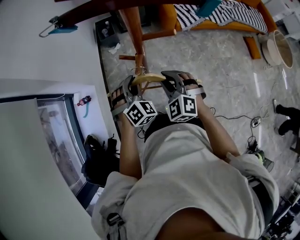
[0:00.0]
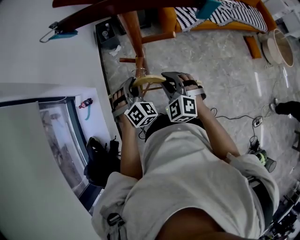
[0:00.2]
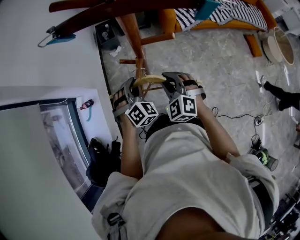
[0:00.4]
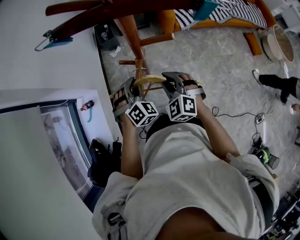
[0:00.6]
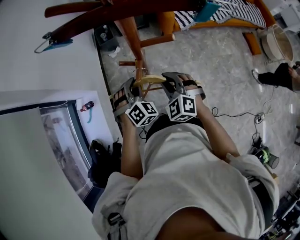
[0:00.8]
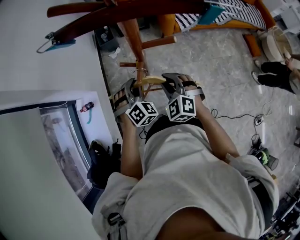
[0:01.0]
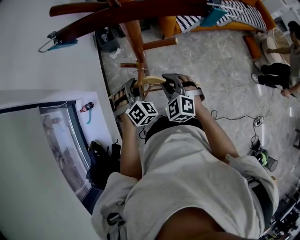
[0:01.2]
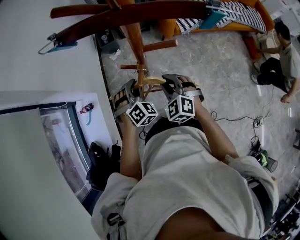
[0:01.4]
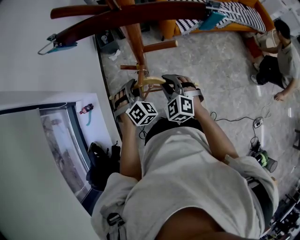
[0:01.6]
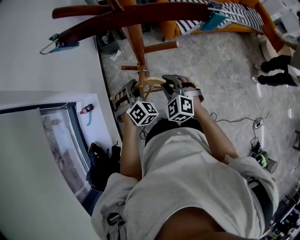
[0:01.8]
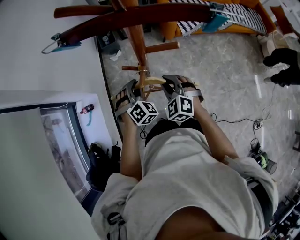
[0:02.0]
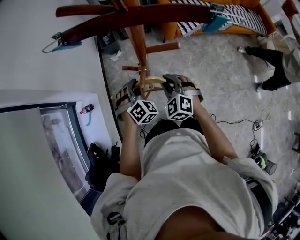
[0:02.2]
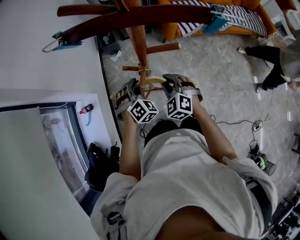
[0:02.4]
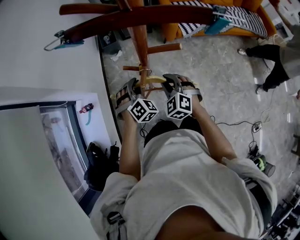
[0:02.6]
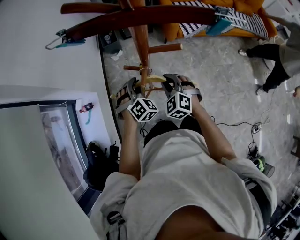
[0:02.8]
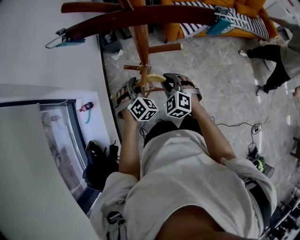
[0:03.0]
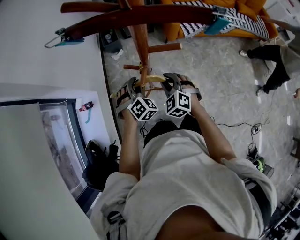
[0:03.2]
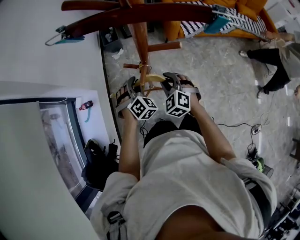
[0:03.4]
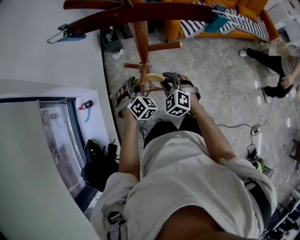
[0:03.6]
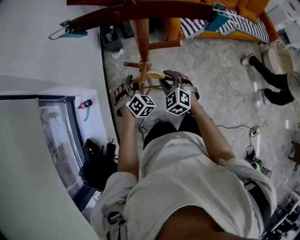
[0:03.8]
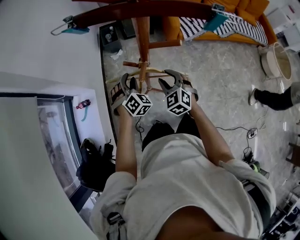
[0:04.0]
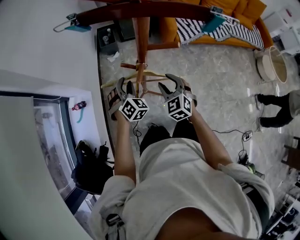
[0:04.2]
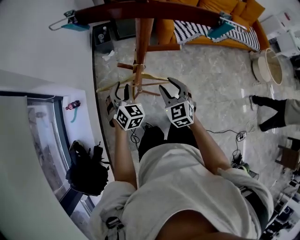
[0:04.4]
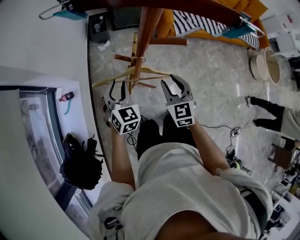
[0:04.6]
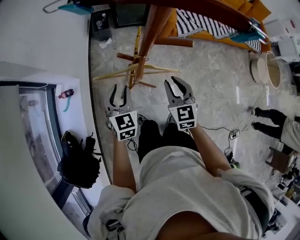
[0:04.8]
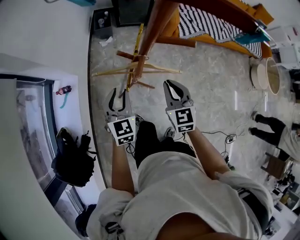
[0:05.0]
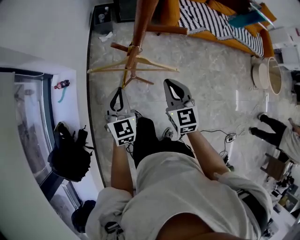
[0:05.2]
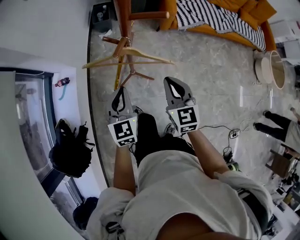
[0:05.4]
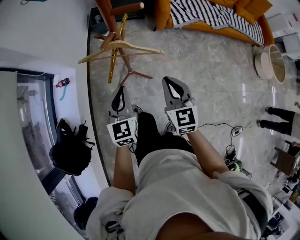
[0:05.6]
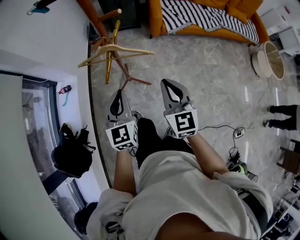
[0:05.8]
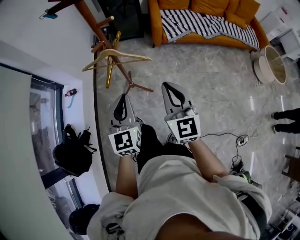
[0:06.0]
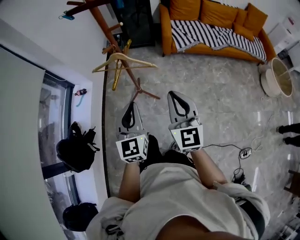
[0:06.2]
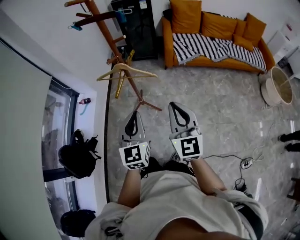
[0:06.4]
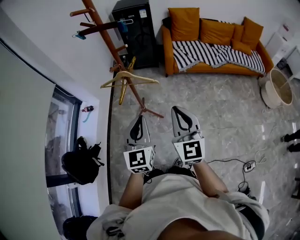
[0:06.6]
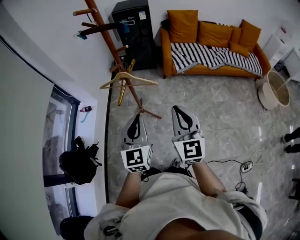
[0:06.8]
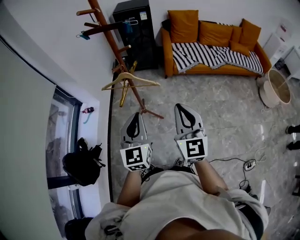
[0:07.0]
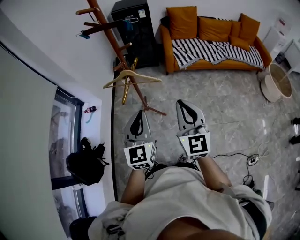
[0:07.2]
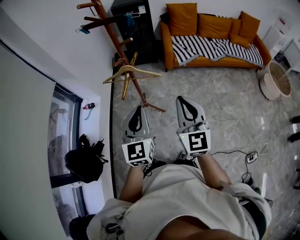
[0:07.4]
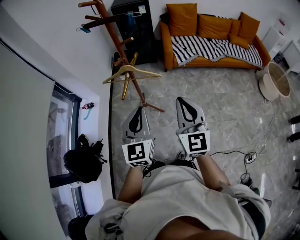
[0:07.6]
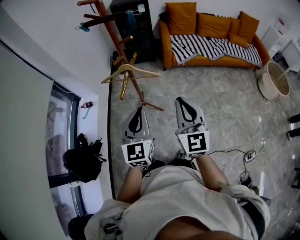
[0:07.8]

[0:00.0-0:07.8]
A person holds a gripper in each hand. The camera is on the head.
0.0 to 1.6 s: The grippers stay close to where they were, moving slightly.
1.6 to 3.2 s: There are only small adjustments of the grippers.
3.2 to 4.6 s: The left gripper ends up about 5 cm from where it was, and swivels some 30 degrees; the right gripper changes place by some 5 cm, and changes its angle by some 30 degrees.
4.6 to 6.2 s: The right gripper is displaced backward, upward and to the right by roughly 35 cm, rotates approximately 20 degrees, and closes its fingers. Meanwhile the left gripper goes about 40 cm backward, to the right and upward, rotates approximately 30 degrees, and closes up.
6.2 to 7.8 s: Both grippers move upward, roughly 5 cm.

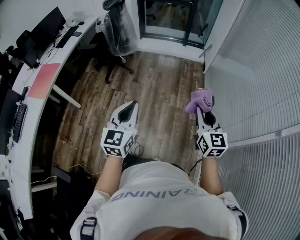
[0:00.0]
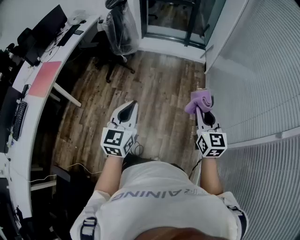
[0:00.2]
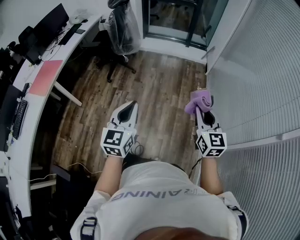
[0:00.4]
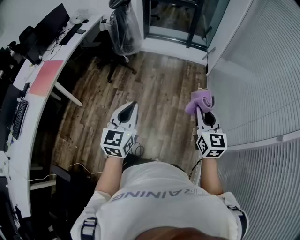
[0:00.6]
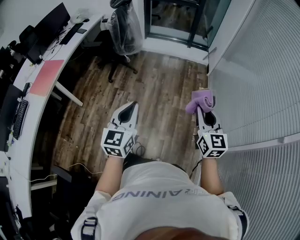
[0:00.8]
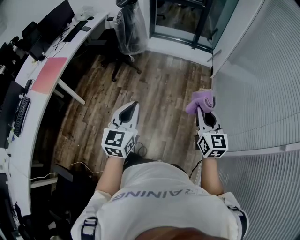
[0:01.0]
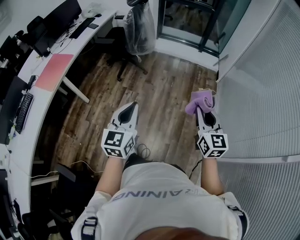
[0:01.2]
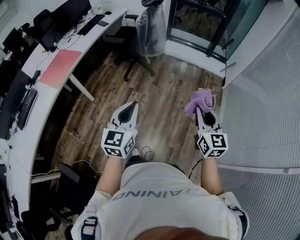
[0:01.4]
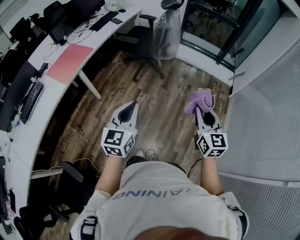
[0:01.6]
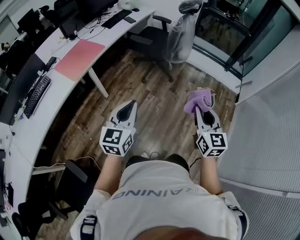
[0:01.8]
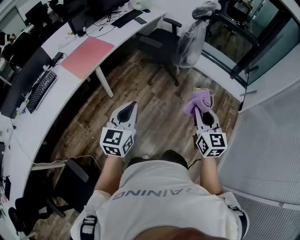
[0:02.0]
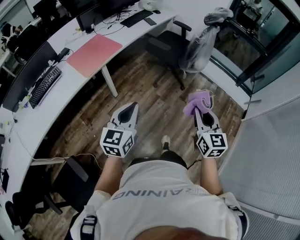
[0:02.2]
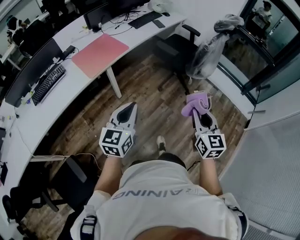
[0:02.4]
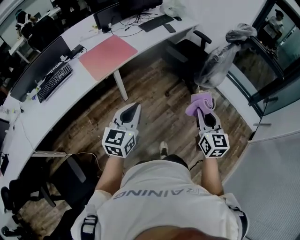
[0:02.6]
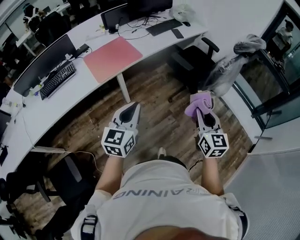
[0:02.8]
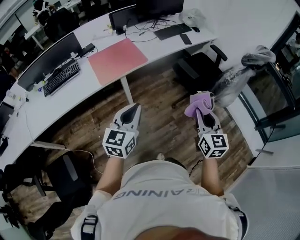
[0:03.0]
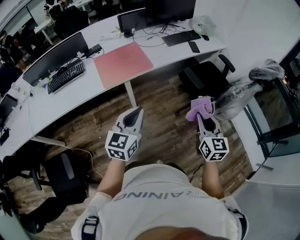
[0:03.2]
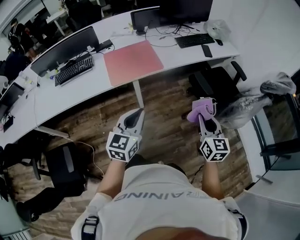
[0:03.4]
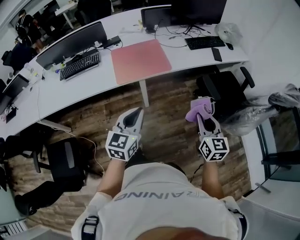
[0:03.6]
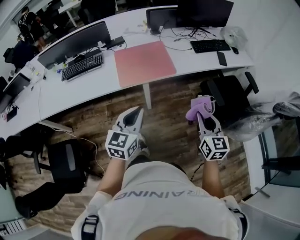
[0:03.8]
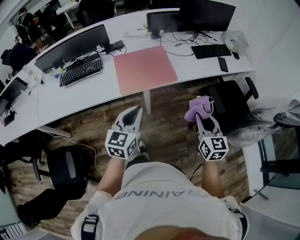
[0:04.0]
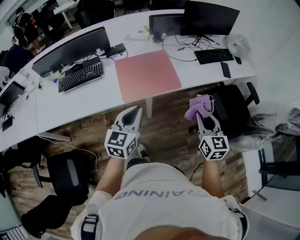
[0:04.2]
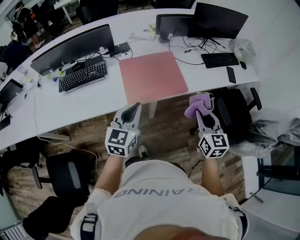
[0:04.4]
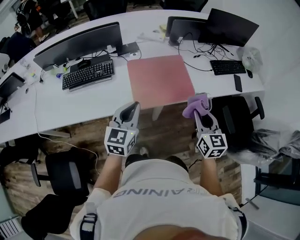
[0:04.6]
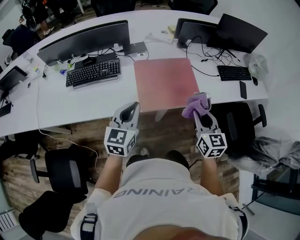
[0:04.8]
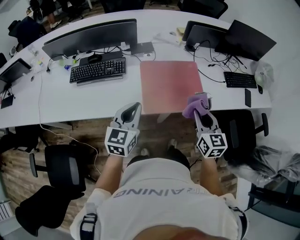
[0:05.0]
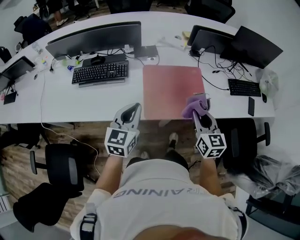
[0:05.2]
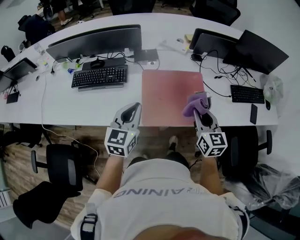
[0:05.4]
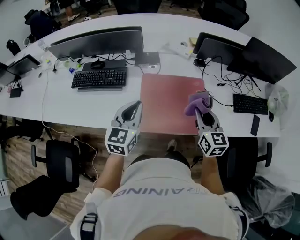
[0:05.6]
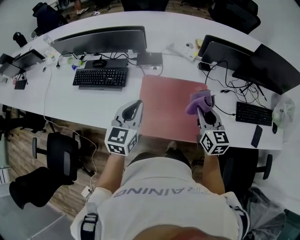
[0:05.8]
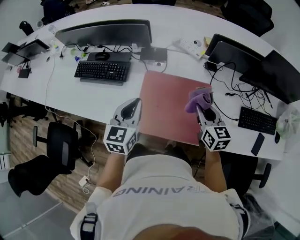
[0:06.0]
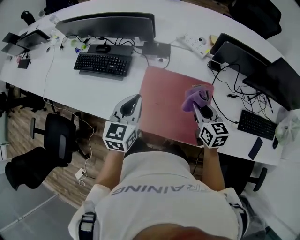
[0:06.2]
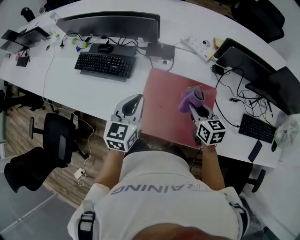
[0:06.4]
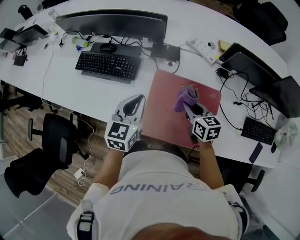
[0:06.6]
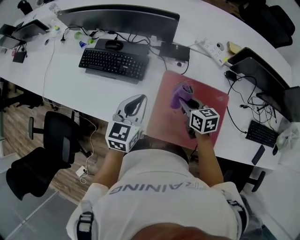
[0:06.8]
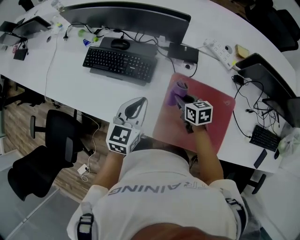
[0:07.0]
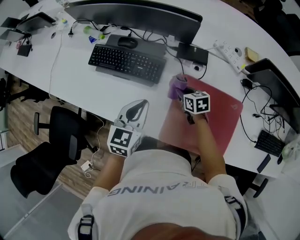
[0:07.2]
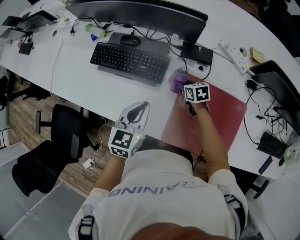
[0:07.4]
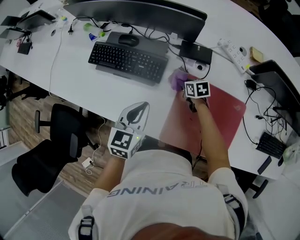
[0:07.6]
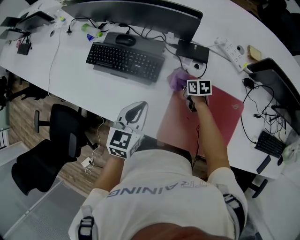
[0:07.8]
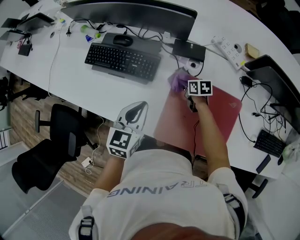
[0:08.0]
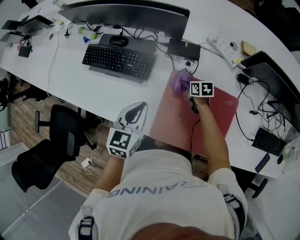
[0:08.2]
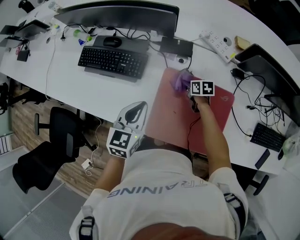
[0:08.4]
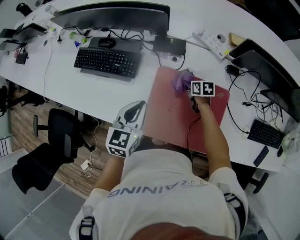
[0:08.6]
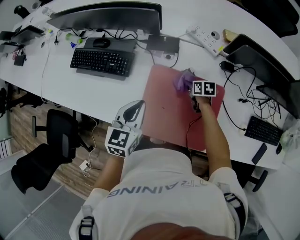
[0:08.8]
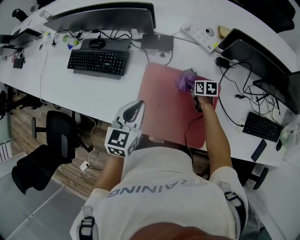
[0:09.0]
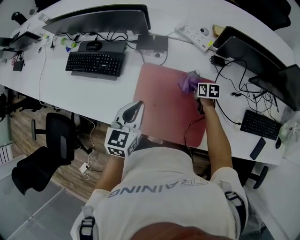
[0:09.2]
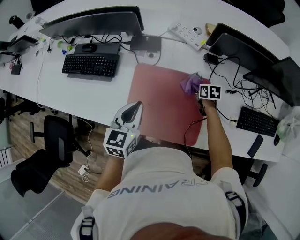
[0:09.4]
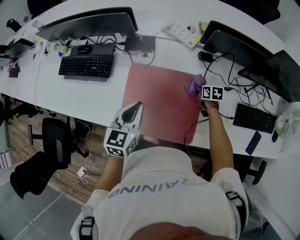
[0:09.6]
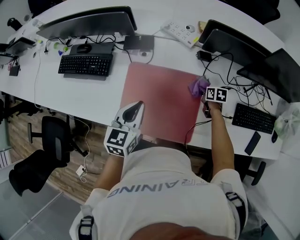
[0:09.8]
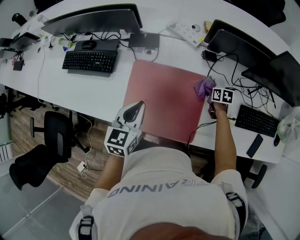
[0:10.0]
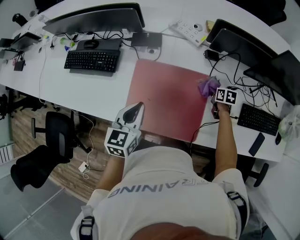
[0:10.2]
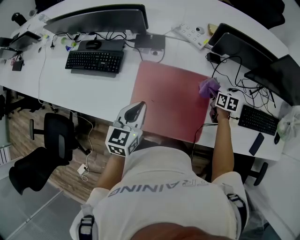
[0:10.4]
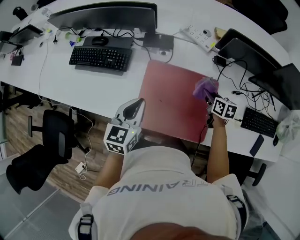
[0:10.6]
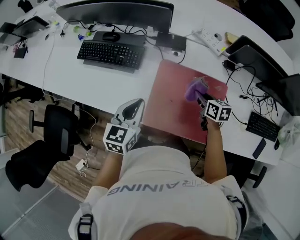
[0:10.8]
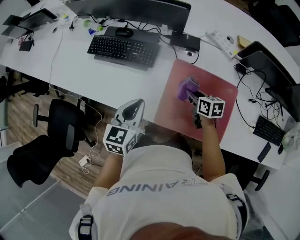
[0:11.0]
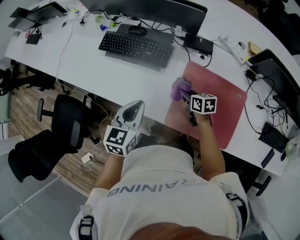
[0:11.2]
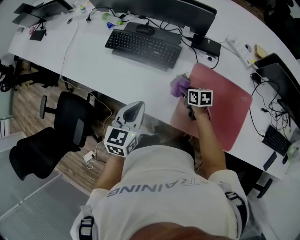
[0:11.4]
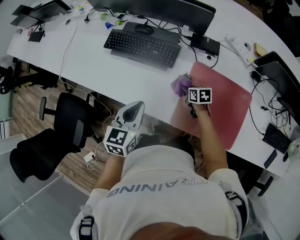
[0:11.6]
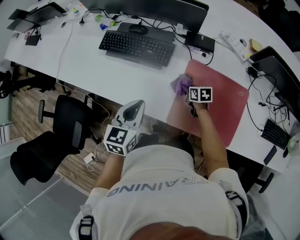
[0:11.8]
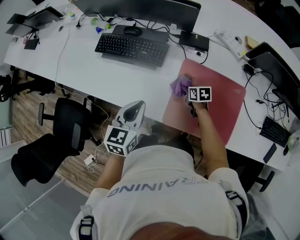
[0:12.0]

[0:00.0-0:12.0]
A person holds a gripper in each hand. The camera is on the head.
0.0 to 1.6 s: The left gripper heads to the left, covering some 30 cm. The right gripper heads to the left and forward, covering approximately 30 cm.
1.6 to 3.0 s: The right gripper shifts by roughly 40 cm, and turns by approximately 30 degrees; the left gripper changes place by approximately 30 cm, and changes its angle by roughly 30 degrees.
3.0 to 4.4 s: Both grippers move forward and to the left, approximately 35 cm.
4.4 to 6.0 s: The right gripper moves approximately 40 cm, and swivels some 30 degrees, while the left gripper ends up some 25 cm from where it was, and rotates about 30 degrees.
6.0 to 7.6 s: The right gripper travels forward, downward and to the left by some 40 cm, and swivels approximately 40 degrees. Meanwhile the left gripper goes roughly 20 cm to the left, forward and downward.
7.6 to 9.0 s: The grippers both shift to the right and backward by some 20 cm.
9.0 to 10.4 s: The right gripper moves to the right and backward, about 15 cm.
10.4 to 12.0 s: The right gripper travels to the left by some 35 cm, and changes its angle by approximately 20 degrees. Meanwhile the left gripper moves to the left, roughly 20 cm.

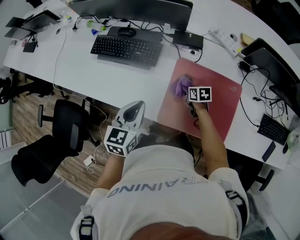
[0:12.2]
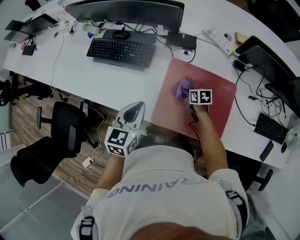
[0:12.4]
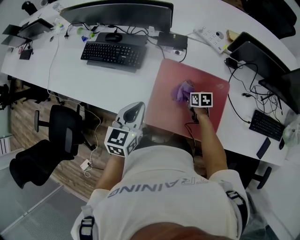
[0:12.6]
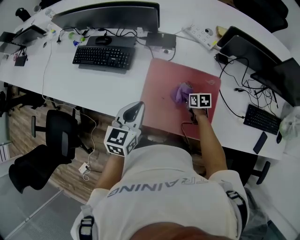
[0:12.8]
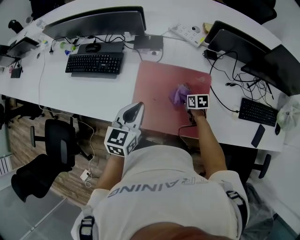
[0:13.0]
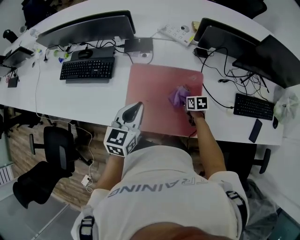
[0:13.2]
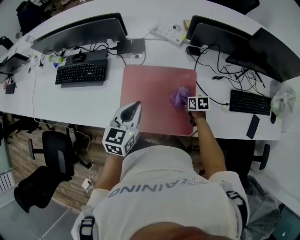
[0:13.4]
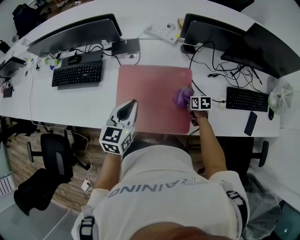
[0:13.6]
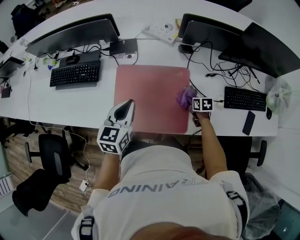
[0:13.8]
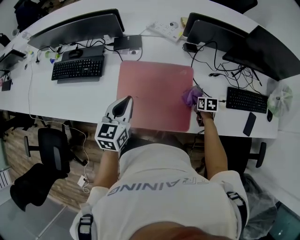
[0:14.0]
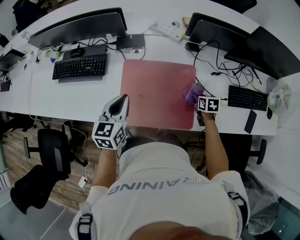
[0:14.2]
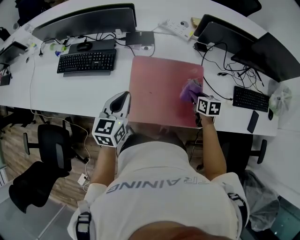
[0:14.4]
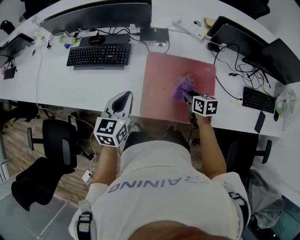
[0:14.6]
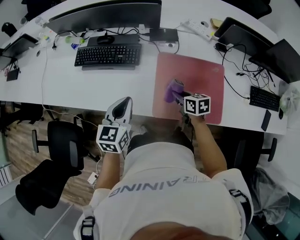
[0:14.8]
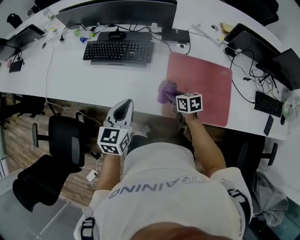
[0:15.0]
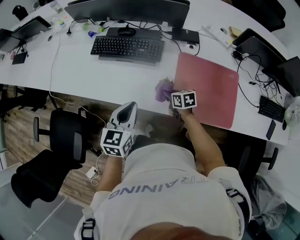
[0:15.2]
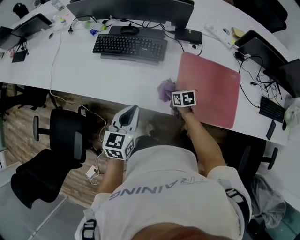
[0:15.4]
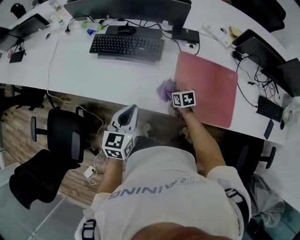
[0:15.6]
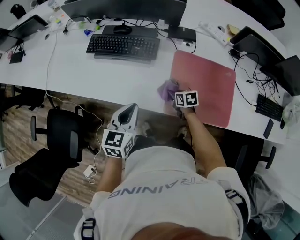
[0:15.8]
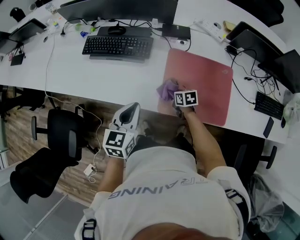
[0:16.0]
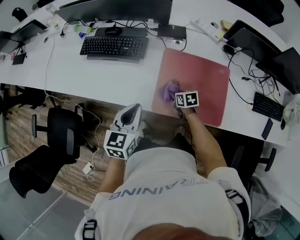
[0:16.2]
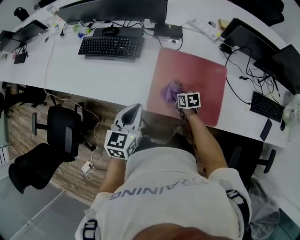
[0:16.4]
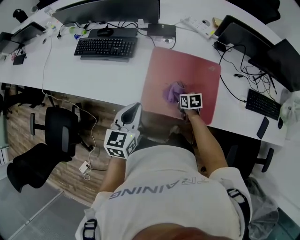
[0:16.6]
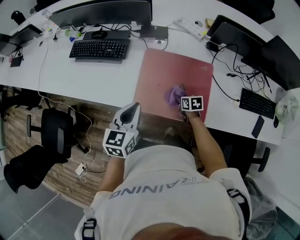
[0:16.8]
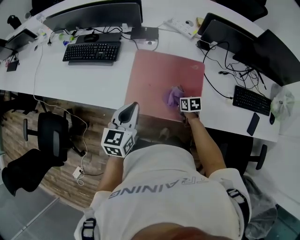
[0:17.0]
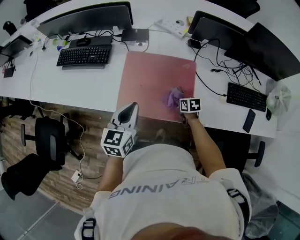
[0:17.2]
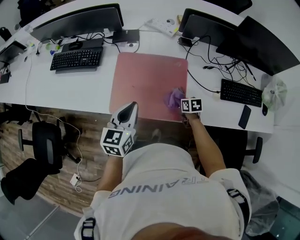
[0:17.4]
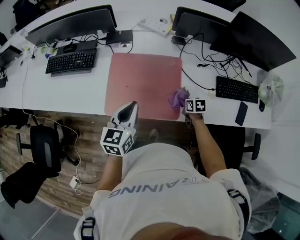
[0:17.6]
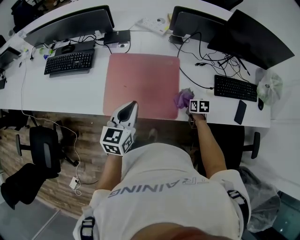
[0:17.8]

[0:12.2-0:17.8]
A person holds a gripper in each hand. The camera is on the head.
12.2 to 13.6 s: The left gripper goes some 25 cm to the right, while the right gripper goes some 35 cm to the right and backward.
13.6 to 15.0 s: Both grippers move to the left, about 35 cm.
15.0 to 16.4 s: The left gripper is displaced to the right and backward by about 15 cm, while the right gripper shifts roughly 15 cm to the right and downward.
16.4 to 17.8 s: The right gripper goes approximately 35 cm to the right, while the left gripper is displaced to the right by approximately 20 cm.
